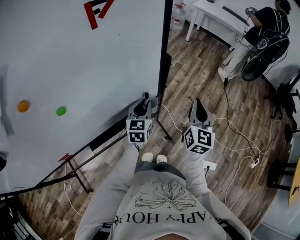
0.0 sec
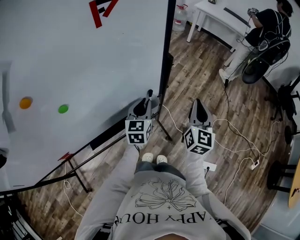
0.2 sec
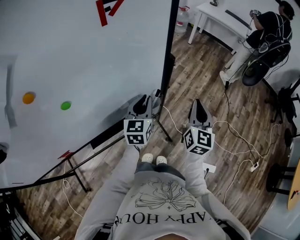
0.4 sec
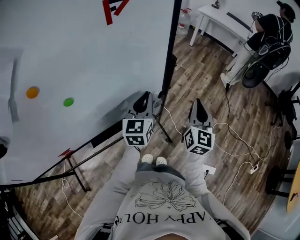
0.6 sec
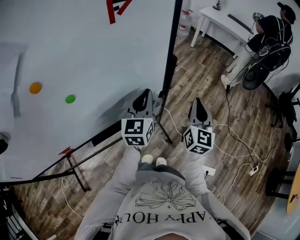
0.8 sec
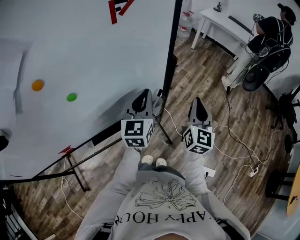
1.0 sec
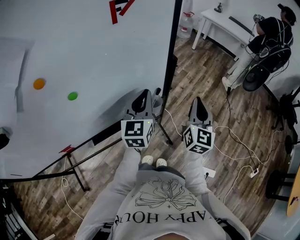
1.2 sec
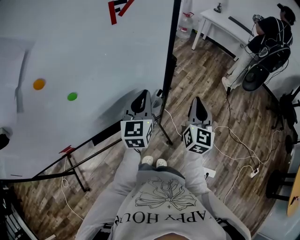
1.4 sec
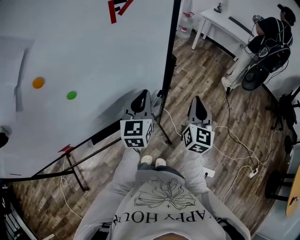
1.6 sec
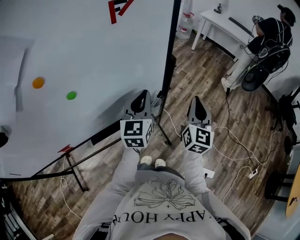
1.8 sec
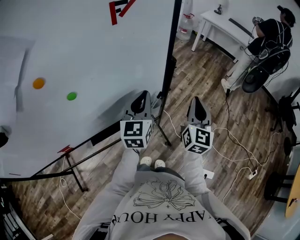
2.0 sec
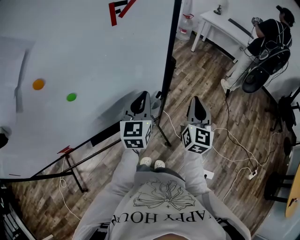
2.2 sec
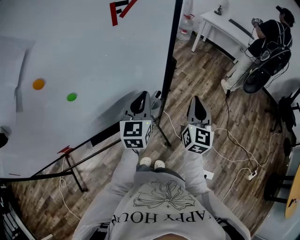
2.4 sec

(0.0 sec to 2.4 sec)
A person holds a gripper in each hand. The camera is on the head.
0.0 sec - 1.2 sec: The left gripper is displaced upward by roughly 15 cm.
1.2 sec - 2.4 sec: The grippers stay close to where they were, moving slightly.

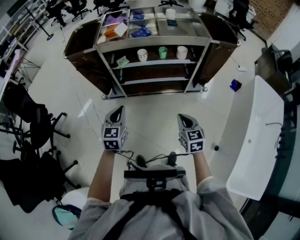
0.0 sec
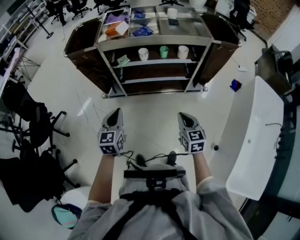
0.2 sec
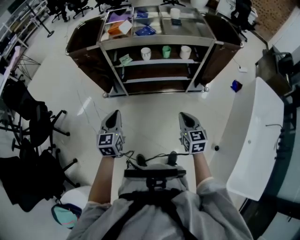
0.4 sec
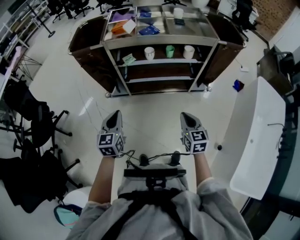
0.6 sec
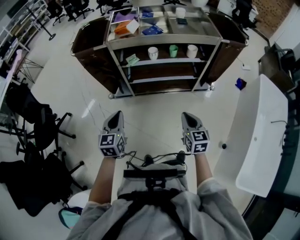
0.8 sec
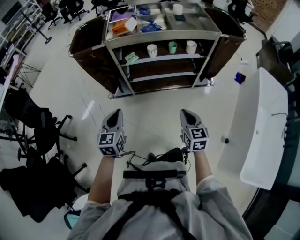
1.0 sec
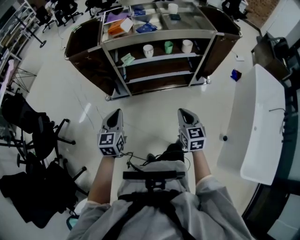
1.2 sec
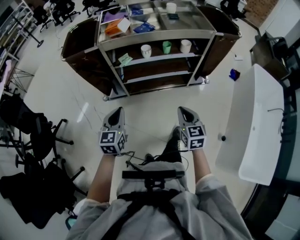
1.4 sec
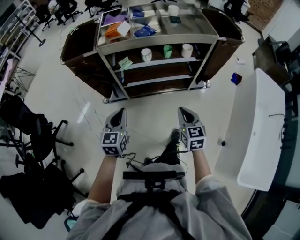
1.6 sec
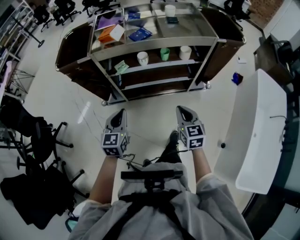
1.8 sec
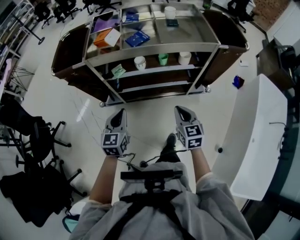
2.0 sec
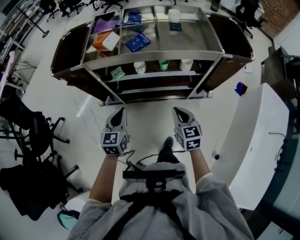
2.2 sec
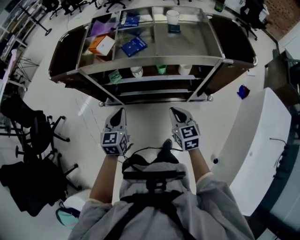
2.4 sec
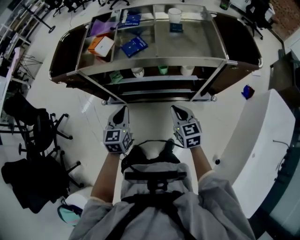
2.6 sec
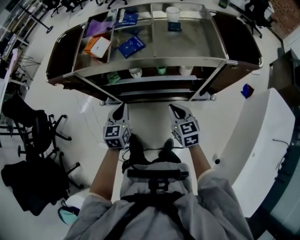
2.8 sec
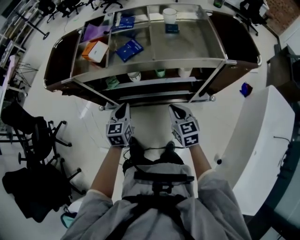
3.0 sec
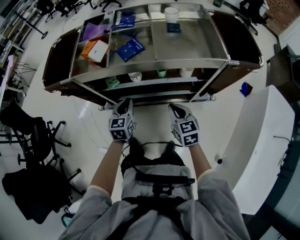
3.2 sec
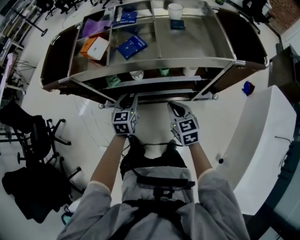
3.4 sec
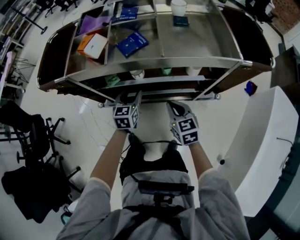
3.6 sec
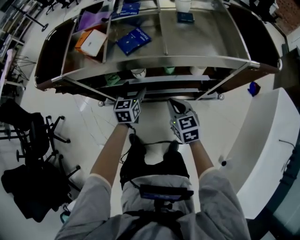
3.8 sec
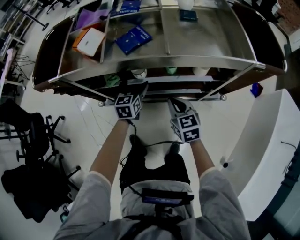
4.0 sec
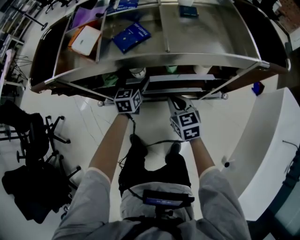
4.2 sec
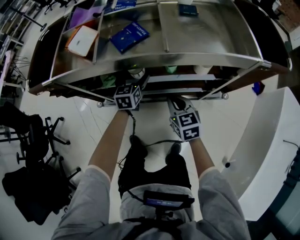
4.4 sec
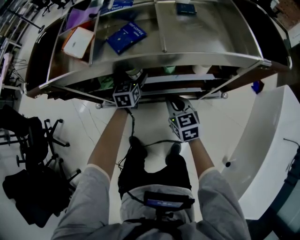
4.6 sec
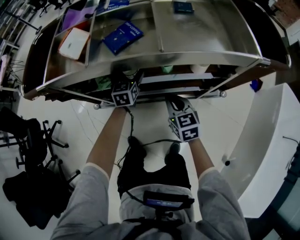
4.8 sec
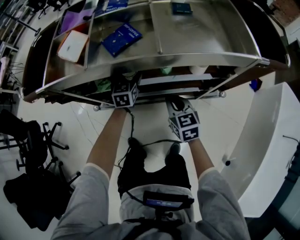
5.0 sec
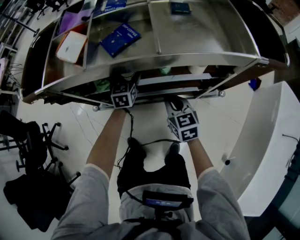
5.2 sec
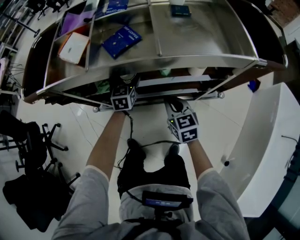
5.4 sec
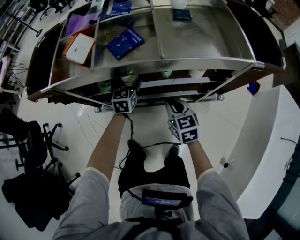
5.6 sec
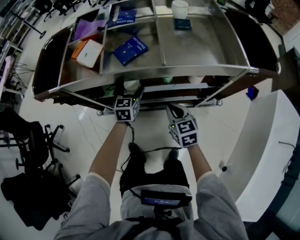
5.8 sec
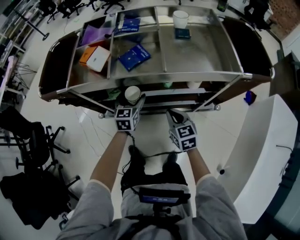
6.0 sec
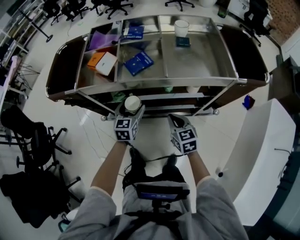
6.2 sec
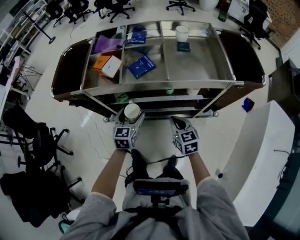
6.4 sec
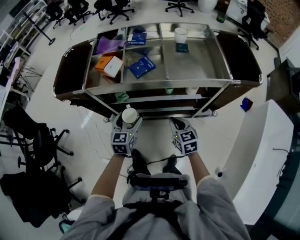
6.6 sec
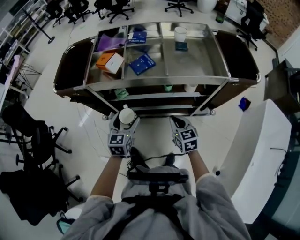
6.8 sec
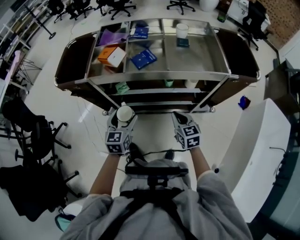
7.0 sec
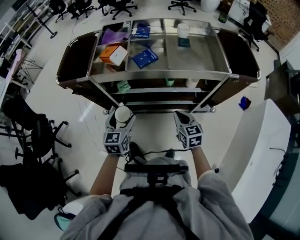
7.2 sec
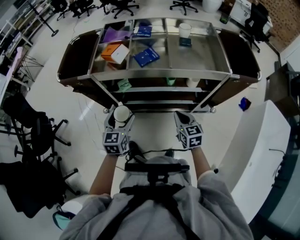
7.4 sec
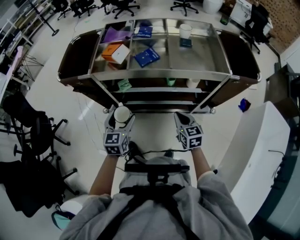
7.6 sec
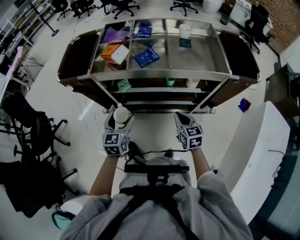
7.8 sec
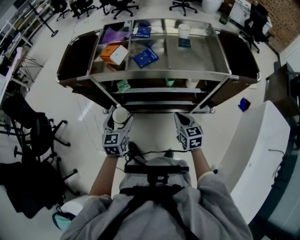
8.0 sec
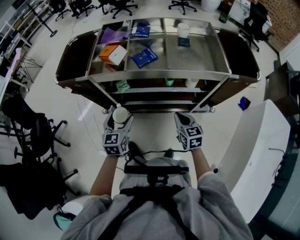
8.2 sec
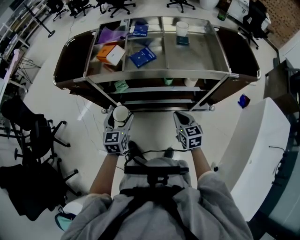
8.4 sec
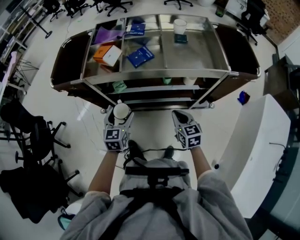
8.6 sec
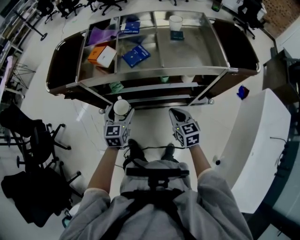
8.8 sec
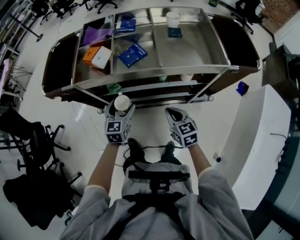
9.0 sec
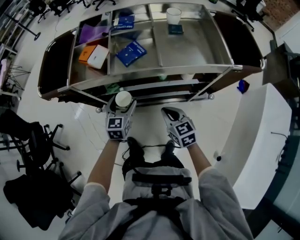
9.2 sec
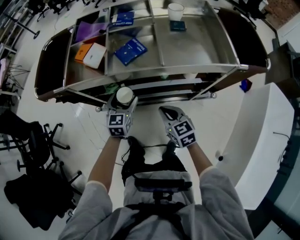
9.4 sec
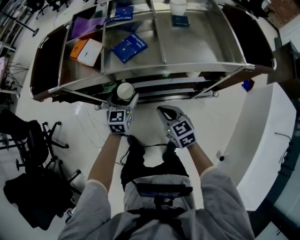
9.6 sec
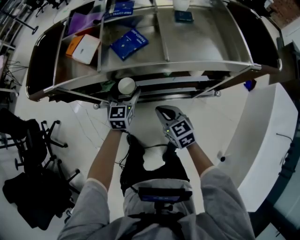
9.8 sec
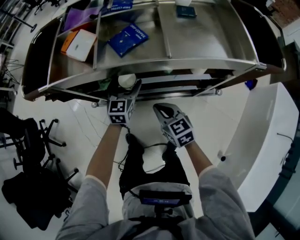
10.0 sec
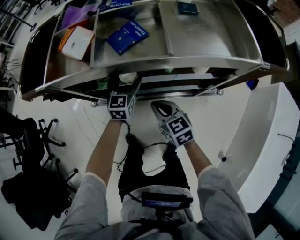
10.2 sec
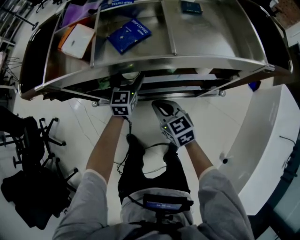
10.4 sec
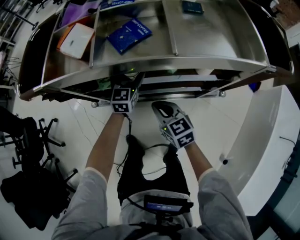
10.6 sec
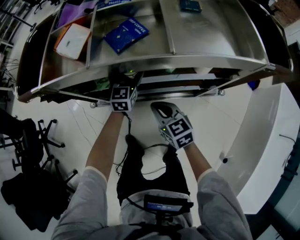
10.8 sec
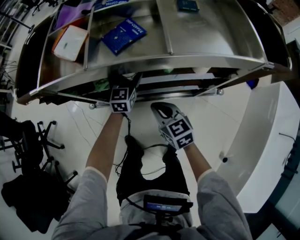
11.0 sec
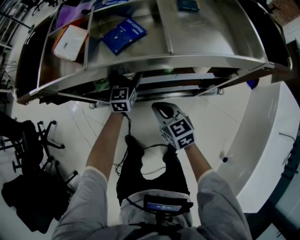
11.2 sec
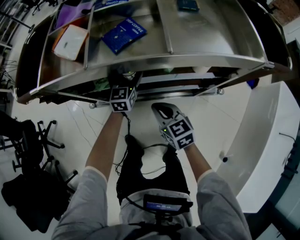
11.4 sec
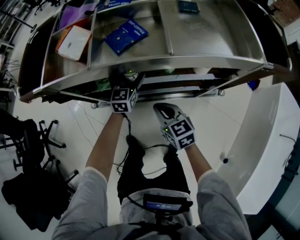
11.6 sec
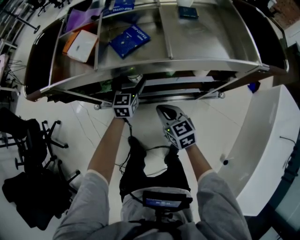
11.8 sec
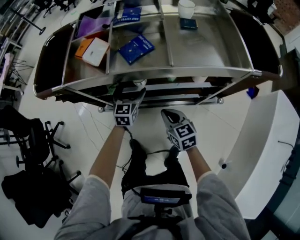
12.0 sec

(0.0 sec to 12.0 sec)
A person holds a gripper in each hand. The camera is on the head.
0.0 sec - 1.6 sec: The left gripper moves to the left, some 5 cm. Meanwhile the right gripper travels to the left and forward by some 10 cm.
1.6 sec - 3.0 sec: The grippers both shift forward and to the right by roughly 25 cm.
3.0 sec - 4.4 sec: The left gripper goes roughly 25 cm forward and downward, and opens up. The right gripper is displaced downward and forward by some 15 cm.
4.4 sec - 6.0 sec: The left gripper goes some 10 cm upward and backward. Meanwhile the right gripper is displaced upward by about 5 cm.
6.0 sec - 7.6 sec: The left gripper goes approximately 25 cm backward, upward and to the left, while the right gripper moves backward and upward, about 10 cm.
7.6 sec - 9.0 sec: The left gripper goes roughly 10 cm forward.
9.0 sec - 10.4 sec: The left gripper heads forward, downward and to the right, covering roughly 20 cm. The right gripper goes some 15 cm downward, forward and to the left.
10.4 sec - 12.0 sec: The left gripper changes place by about 5 cm.

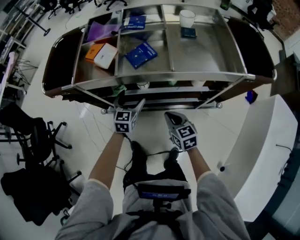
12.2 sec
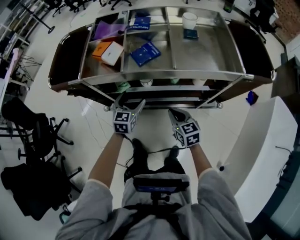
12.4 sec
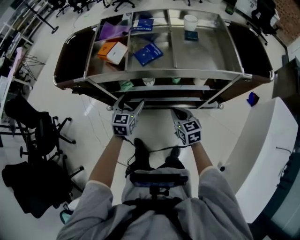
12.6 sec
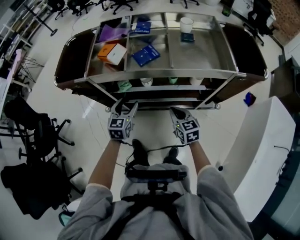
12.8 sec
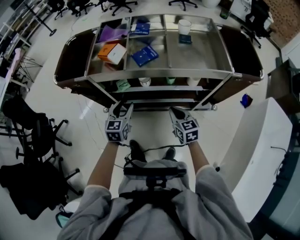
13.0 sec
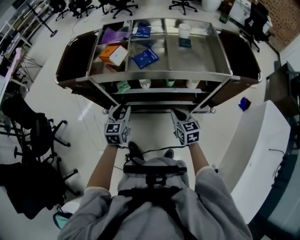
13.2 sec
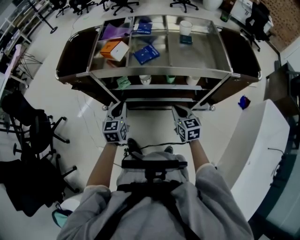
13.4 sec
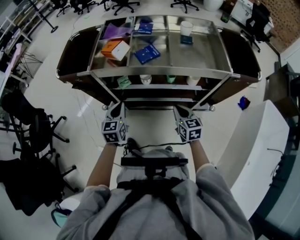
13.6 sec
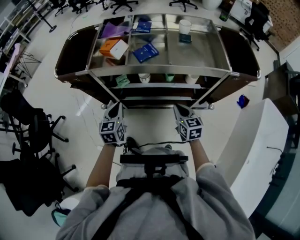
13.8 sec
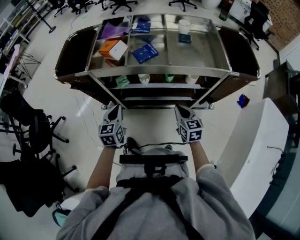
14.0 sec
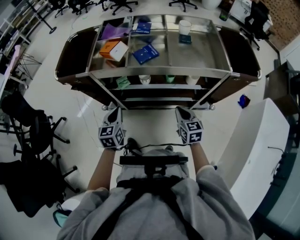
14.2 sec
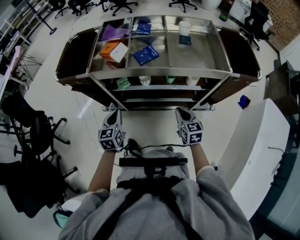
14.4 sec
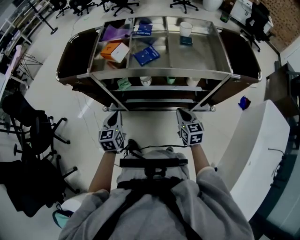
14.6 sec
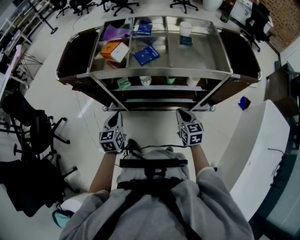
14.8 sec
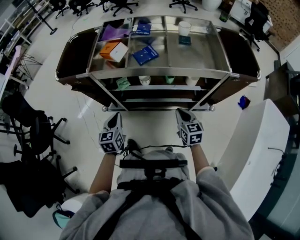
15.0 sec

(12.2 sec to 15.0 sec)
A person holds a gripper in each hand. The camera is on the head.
12.2 sec - 13.6 sec: The right gripper is displaced upward by approximately 5 cm; the left gripper travels backward, upward and to the left by roughly 20 cm, and closes.
13.6 sec - 15.0 sec: The left gripper changes place by about 5 cm.

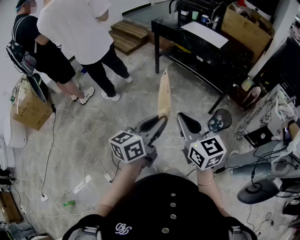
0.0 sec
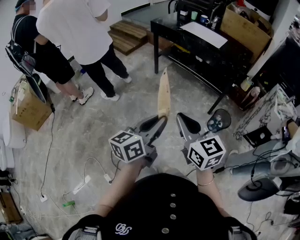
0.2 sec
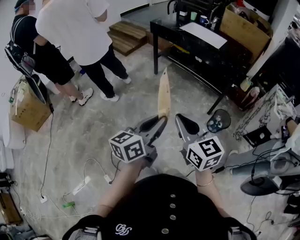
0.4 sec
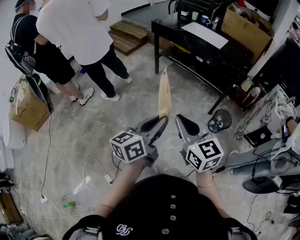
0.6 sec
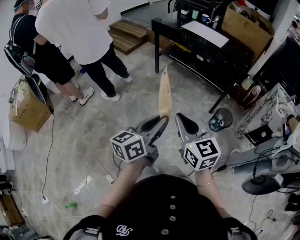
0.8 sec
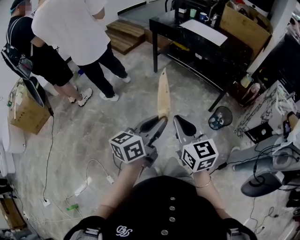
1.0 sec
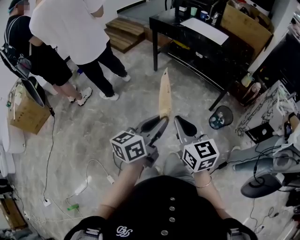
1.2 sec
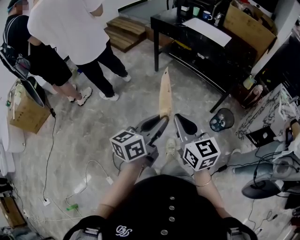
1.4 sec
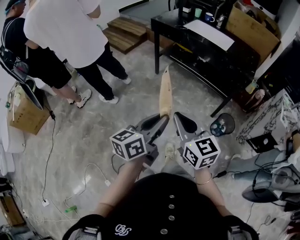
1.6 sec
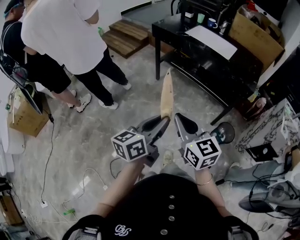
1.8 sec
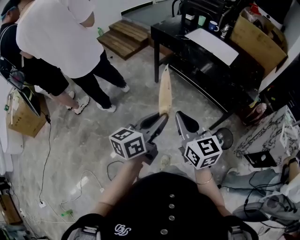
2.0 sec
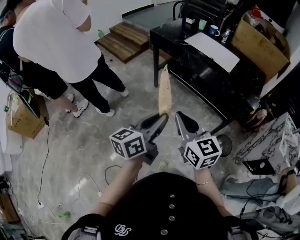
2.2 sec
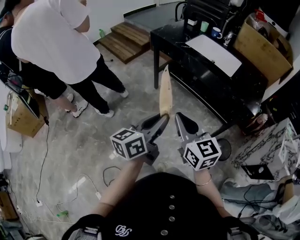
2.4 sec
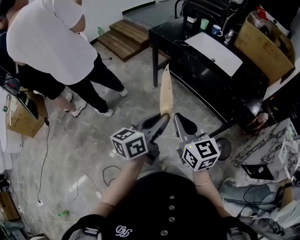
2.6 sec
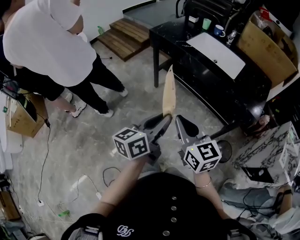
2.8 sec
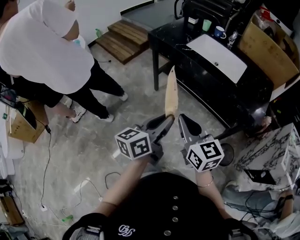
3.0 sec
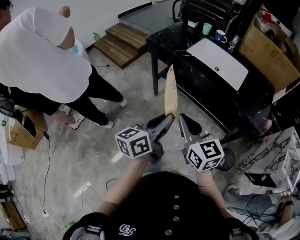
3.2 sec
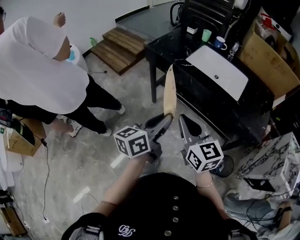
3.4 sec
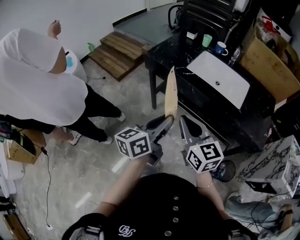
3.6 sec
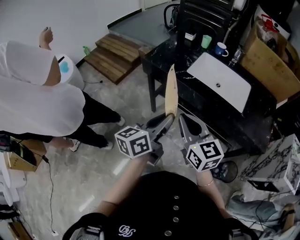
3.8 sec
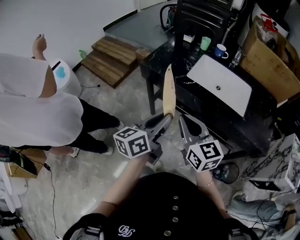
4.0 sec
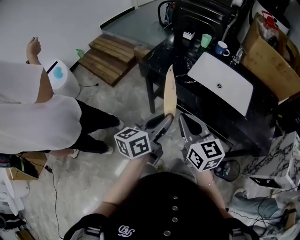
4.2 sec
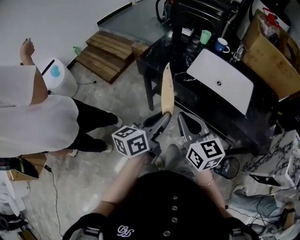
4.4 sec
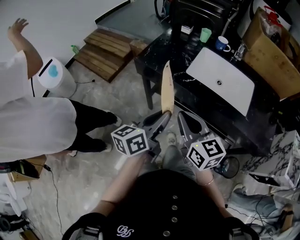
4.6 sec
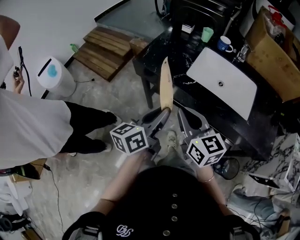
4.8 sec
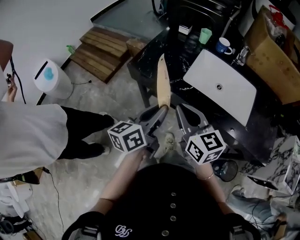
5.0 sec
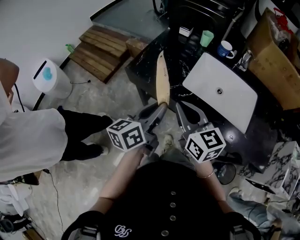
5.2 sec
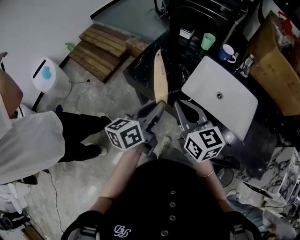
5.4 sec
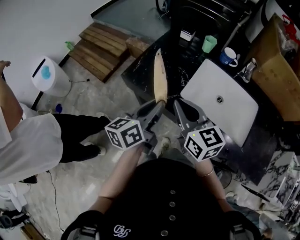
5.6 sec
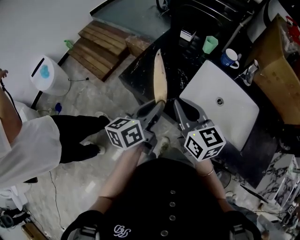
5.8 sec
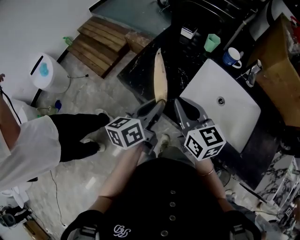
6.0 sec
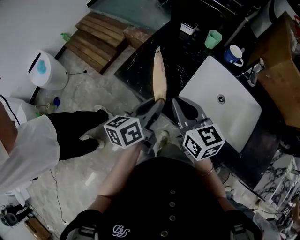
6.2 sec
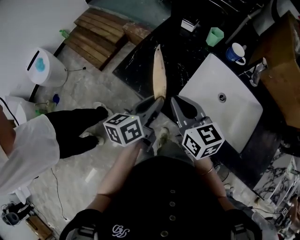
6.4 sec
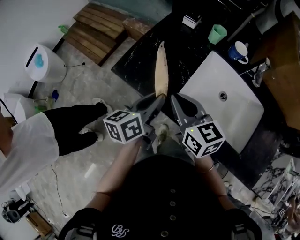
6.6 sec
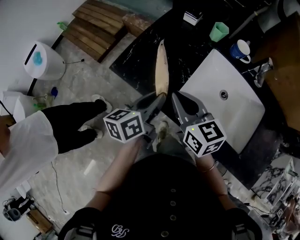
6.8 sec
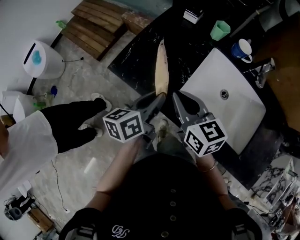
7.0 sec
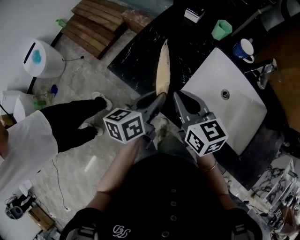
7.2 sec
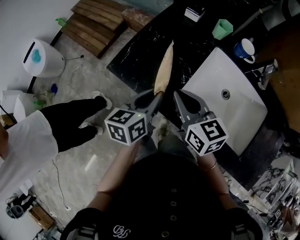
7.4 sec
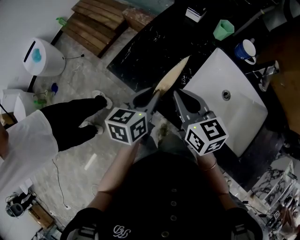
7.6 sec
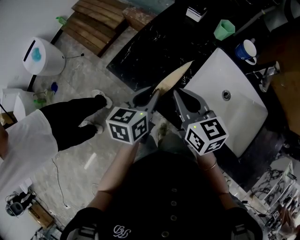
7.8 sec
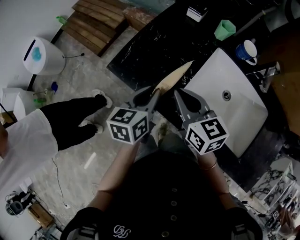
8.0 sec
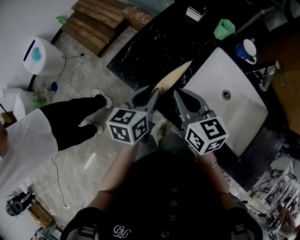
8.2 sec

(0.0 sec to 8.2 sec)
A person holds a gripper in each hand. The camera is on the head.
0.0 sec - 1.6 sec: The two grippers go roughly 10 cm forward.
1.6 sec - 3.2 sec: The two grippers go about 35 cm forward.
3.2 sec - 5.0 sec: The grippers both shift forward by roughly 35 cm.
5.0 sec - 6.6 sec: Both grippers travel together forward, roughly 15 cm.
